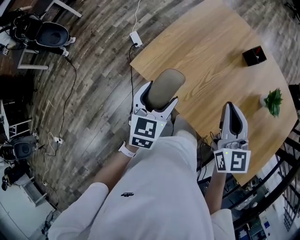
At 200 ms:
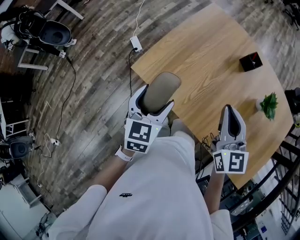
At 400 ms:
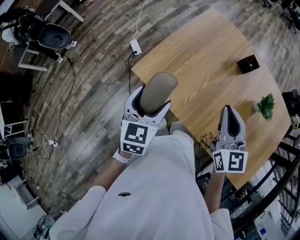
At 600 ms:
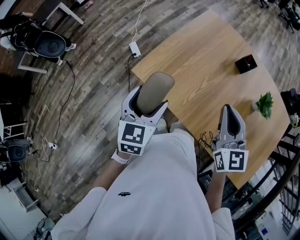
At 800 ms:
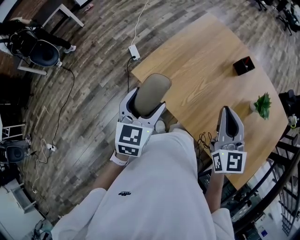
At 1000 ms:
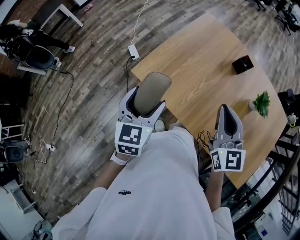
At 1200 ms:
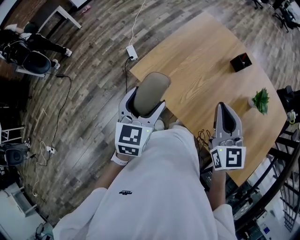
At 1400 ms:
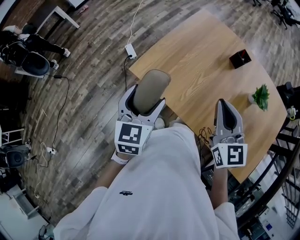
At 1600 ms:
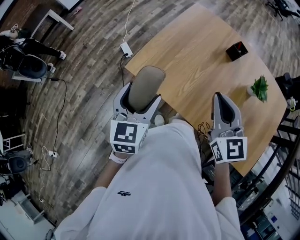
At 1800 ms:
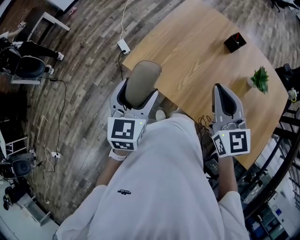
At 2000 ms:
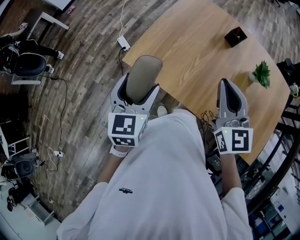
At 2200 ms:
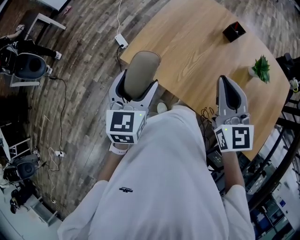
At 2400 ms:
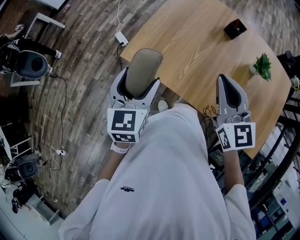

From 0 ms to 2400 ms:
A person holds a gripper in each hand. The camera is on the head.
From 0 ms to 1200 ms: The left gripper is displaced upward by roughly 10 cm. Meanwhile the right gripper goes about 5 cm upward.
From 1200 ms to 2400 ms: The grippers move only a little.

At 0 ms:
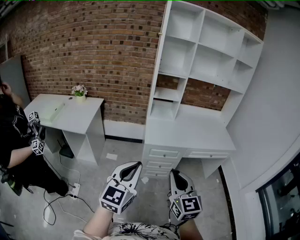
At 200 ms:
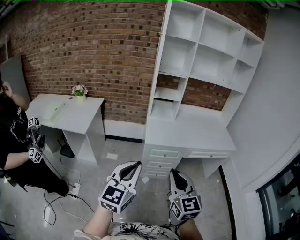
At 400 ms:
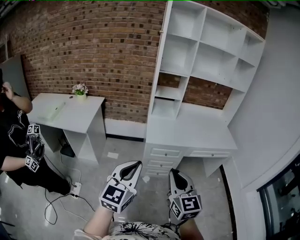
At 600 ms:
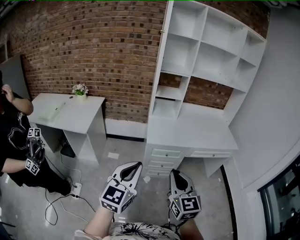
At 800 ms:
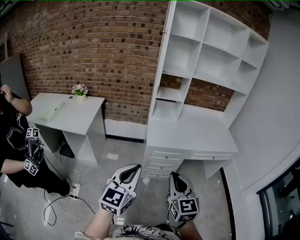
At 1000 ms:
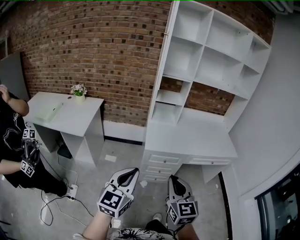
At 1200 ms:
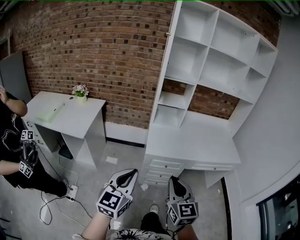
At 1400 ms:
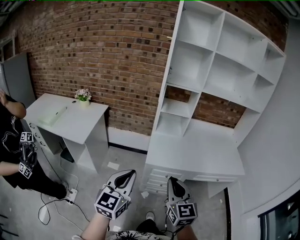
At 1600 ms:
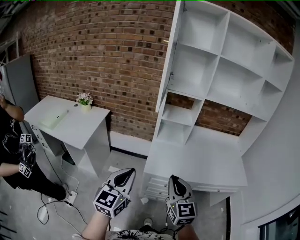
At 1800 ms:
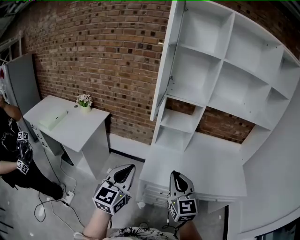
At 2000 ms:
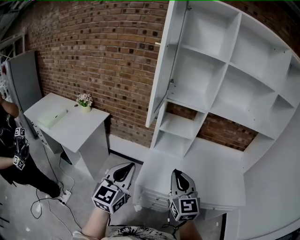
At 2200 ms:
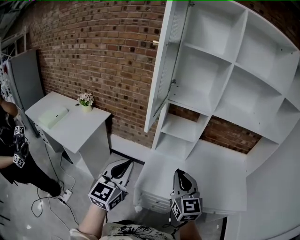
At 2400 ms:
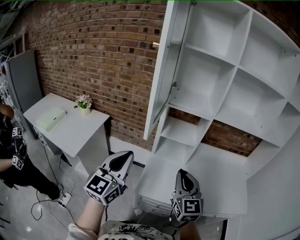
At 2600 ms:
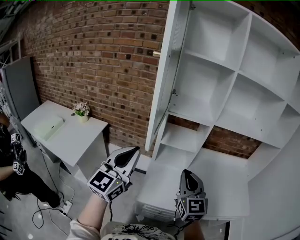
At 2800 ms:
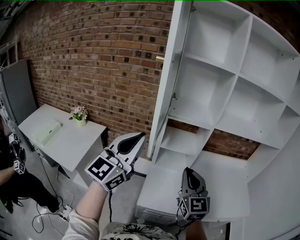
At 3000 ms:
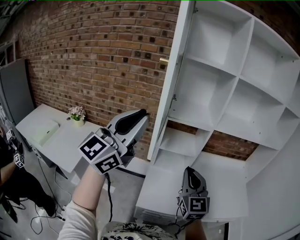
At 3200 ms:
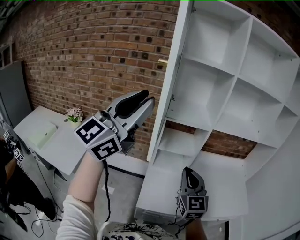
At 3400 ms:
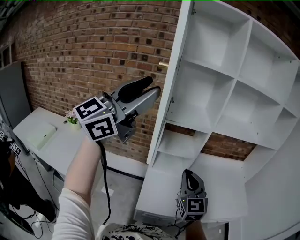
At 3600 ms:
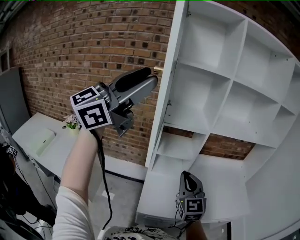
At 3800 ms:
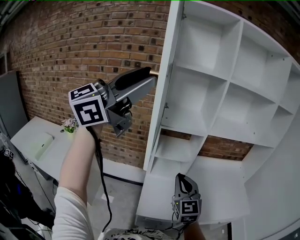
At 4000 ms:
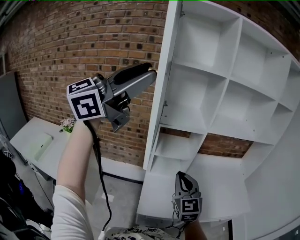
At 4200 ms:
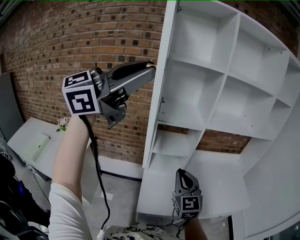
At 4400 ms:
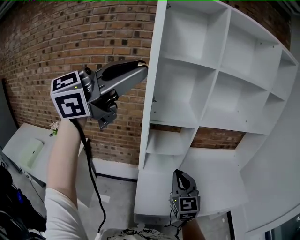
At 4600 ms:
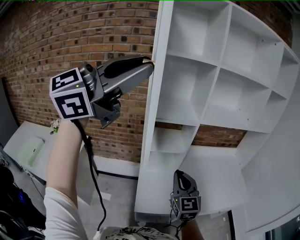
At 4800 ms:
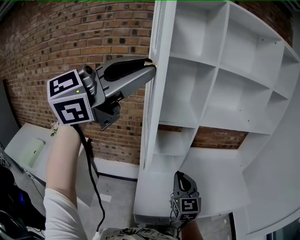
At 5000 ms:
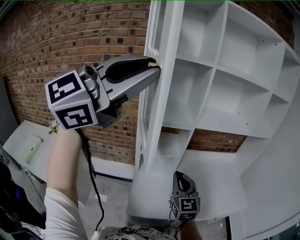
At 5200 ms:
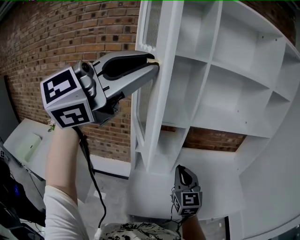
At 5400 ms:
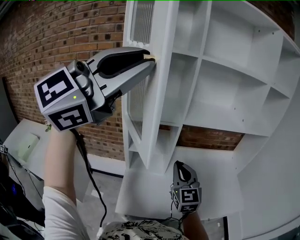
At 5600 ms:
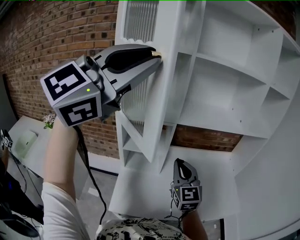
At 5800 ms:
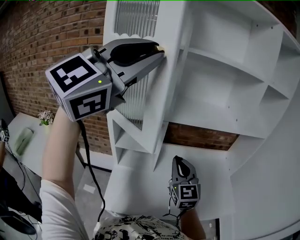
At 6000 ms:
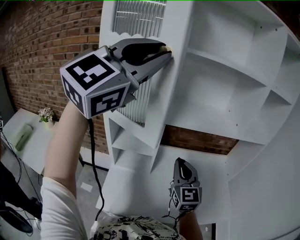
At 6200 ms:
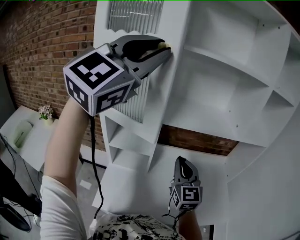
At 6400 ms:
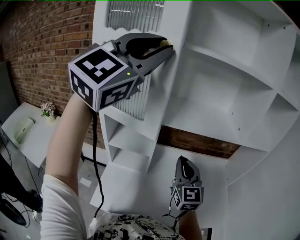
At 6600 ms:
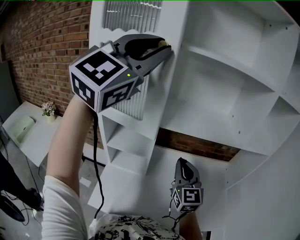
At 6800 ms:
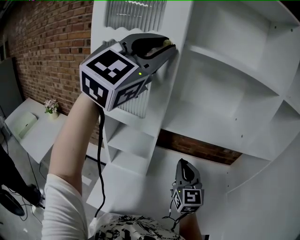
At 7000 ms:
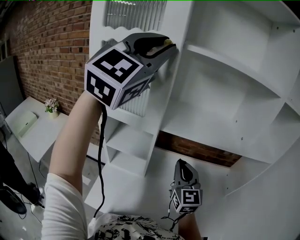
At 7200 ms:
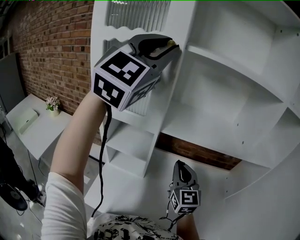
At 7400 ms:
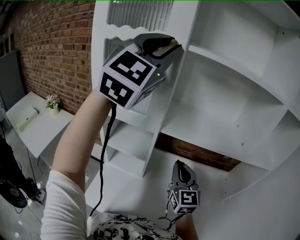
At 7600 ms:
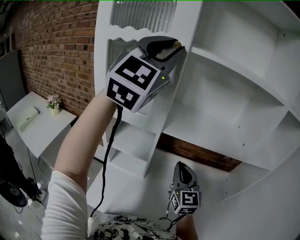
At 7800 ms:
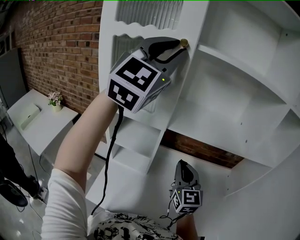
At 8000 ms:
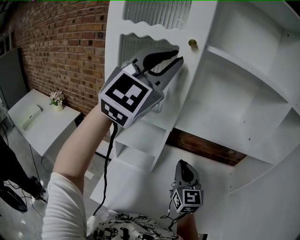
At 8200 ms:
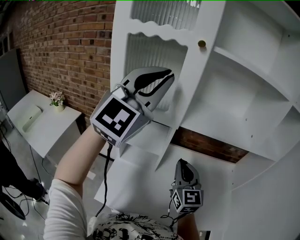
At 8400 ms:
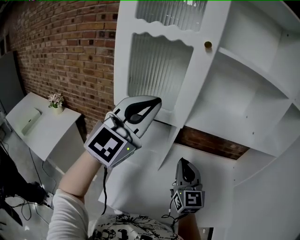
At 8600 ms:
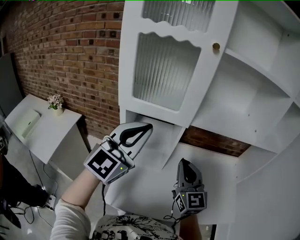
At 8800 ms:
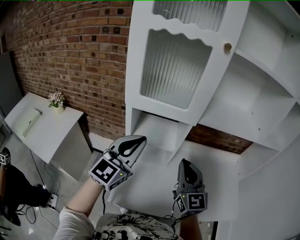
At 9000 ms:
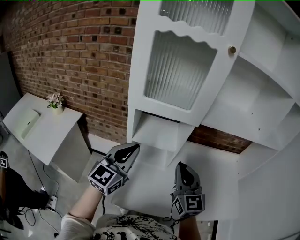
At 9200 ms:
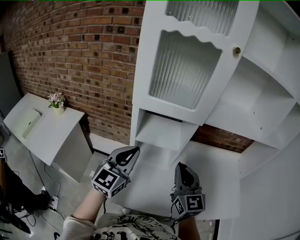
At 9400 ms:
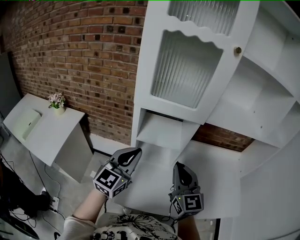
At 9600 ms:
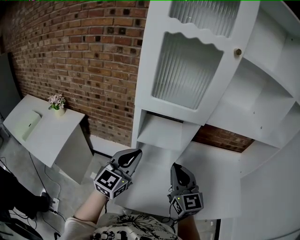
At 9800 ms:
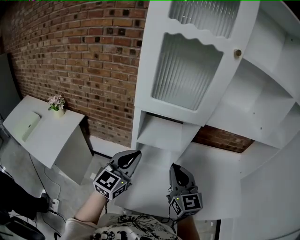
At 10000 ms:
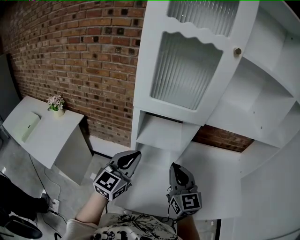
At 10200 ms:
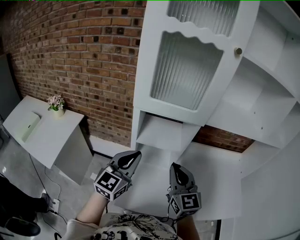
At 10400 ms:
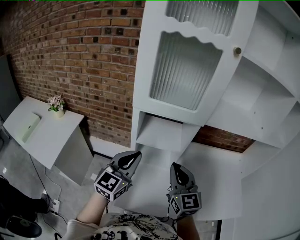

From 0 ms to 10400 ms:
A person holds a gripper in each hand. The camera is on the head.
From 0 ms to 1400 ms: The grippers both shift forward by about 15 cm.
From 1400 ms to 3000 ms: The right gripper moves forward, about 35 cm; the left gripper is displaced forward and upward by roughly 50 cm, and tilts its fingers approximately 30 degrees upward.
From 3000 ms to 4400 ms: The left gripper moves upward, some 15 cm, and rotates roughly 30 degrees.
From 4400 ms to 6000 ms: Both grippers travel together forward and to the right, approximately 30 cm. The left gripper turns by approximately 30 degrees.
From 6000 ms to 7400 ms: The left gripper travels forward by some 15 cm, and swivels about 20 degrees, while the right gripper shifts about 10 cm forward.
From 7400 ms to 9000 ms: The right gripper is displaced to the left and backward by about 20 cm; the left gripper goes some 40 cm downward and to the left, turns by approximately 40 degrees, and closes its fingers.
From 9000 ms to 10400 ms: There are only small adjustments of the grippers.

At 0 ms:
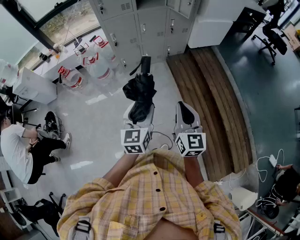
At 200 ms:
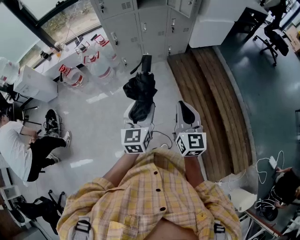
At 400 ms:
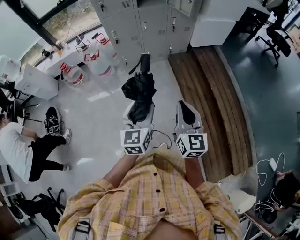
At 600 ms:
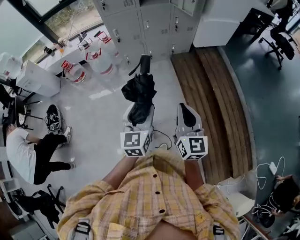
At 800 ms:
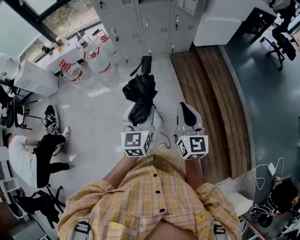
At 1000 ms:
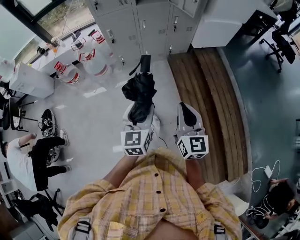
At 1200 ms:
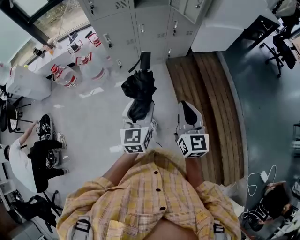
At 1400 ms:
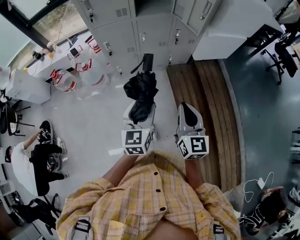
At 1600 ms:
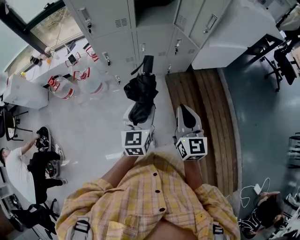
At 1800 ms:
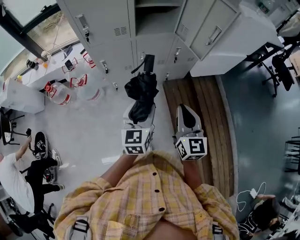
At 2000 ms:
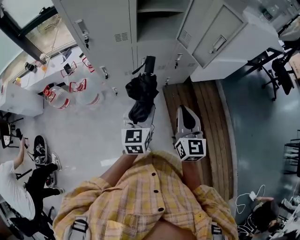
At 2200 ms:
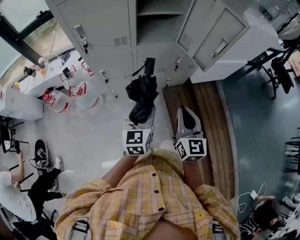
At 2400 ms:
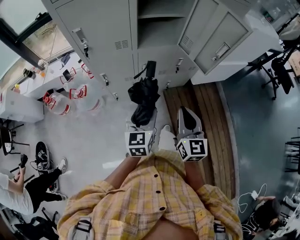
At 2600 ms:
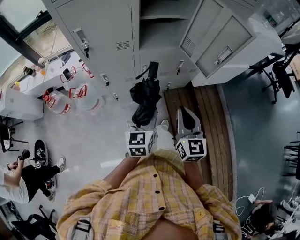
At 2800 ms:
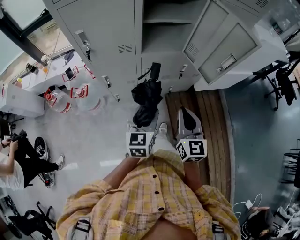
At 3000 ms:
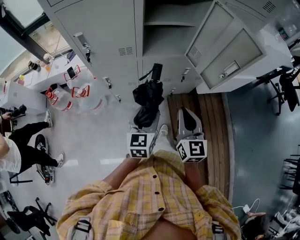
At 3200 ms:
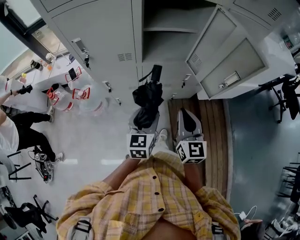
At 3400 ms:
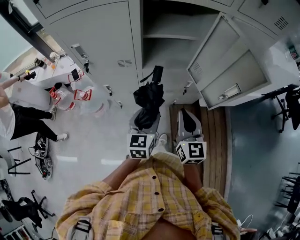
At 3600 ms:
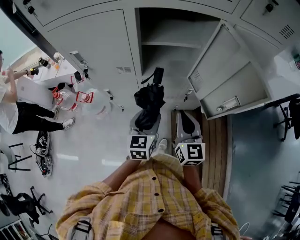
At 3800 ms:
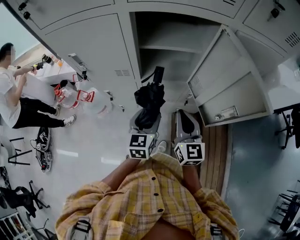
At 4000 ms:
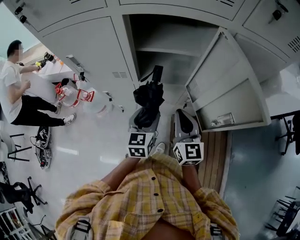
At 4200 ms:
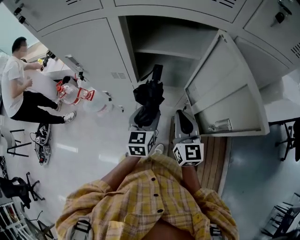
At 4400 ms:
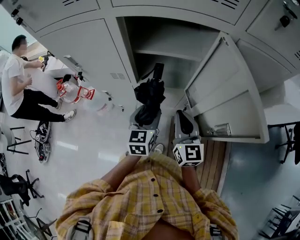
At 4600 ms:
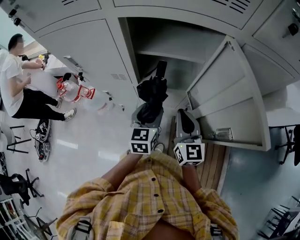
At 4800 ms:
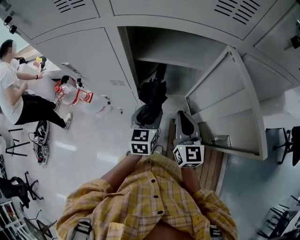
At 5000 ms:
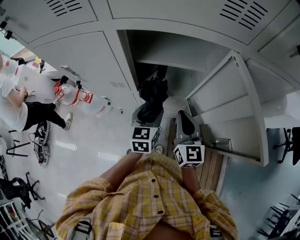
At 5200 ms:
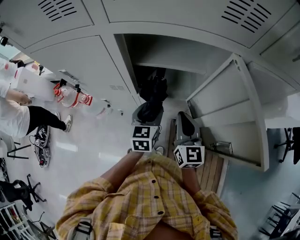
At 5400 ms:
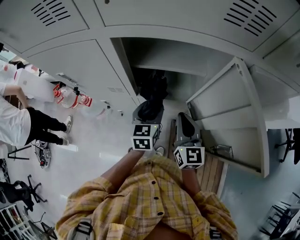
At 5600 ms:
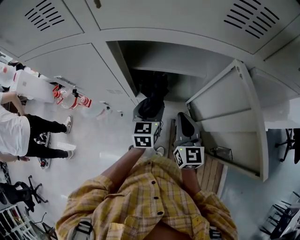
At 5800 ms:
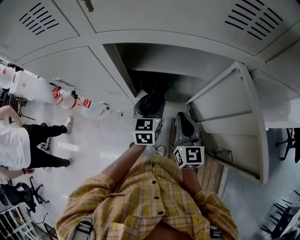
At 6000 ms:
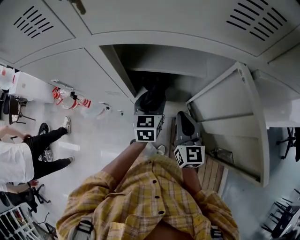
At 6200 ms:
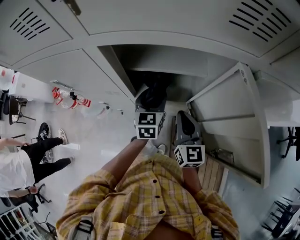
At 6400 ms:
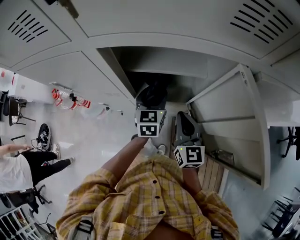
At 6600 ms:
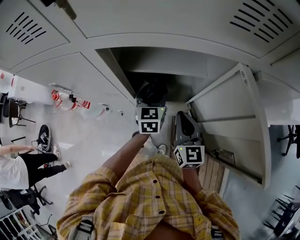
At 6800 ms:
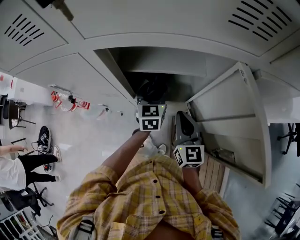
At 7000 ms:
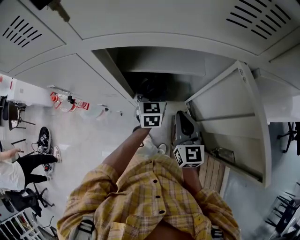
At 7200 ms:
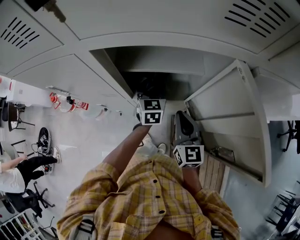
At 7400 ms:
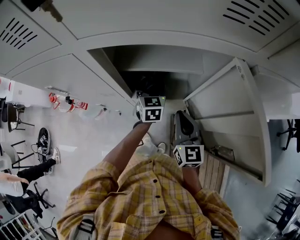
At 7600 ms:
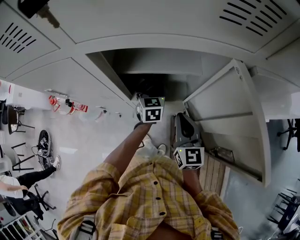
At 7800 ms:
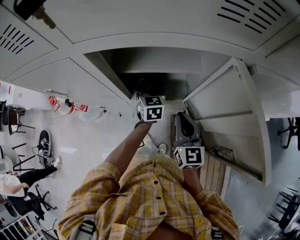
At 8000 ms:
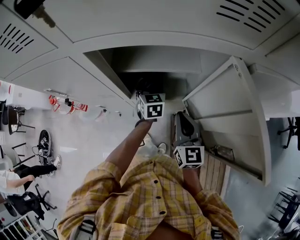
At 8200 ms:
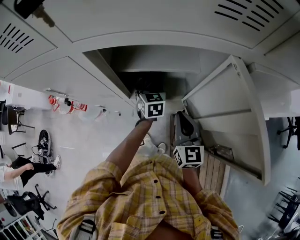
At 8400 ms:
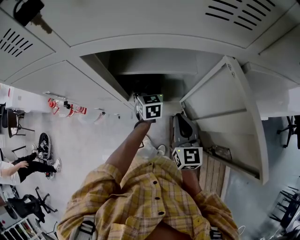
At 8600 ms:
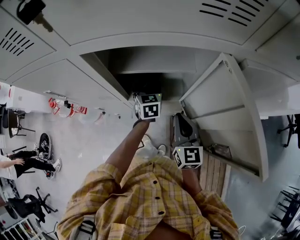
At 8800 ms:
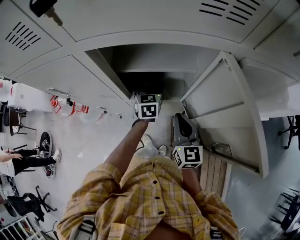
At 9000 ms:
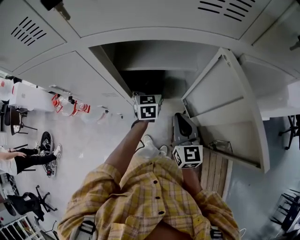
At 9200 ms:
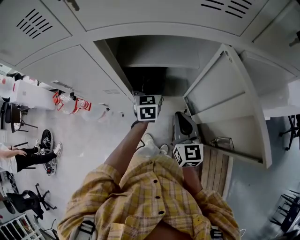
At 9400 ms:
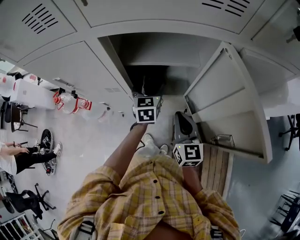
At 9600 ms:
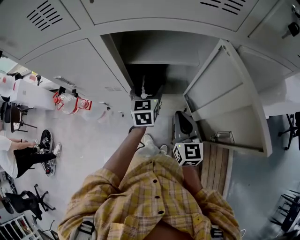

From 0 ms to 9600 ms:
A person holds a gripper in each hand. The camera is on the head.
From 0 ms to 1600 ms: Both grippers travel together forward, roughly 30 cm.
From 1600 ms to 3200 ms: The grippers both shift forward by some 25 cm.
From 3200 ms to 4800 ms: The right gripper moves forward, roughly 20 cm. Meanwhile the left gripper travels forward and to the right by some 20 cm.
From 4800 ms to 6400 ms: The right gripper travels forward by roughly 5 cm, while the left gripper travels forward by about 15 cm.
From 6400 ms to 8000 ms: The left gripper shifts some 10 cm downward and forward.
From 8000 ms to 9600 ms: The left gripper shifts approximately 10 cm upward and backward.

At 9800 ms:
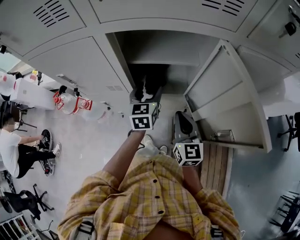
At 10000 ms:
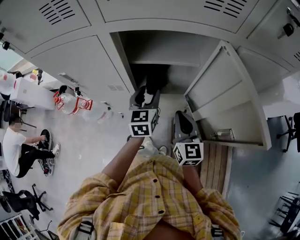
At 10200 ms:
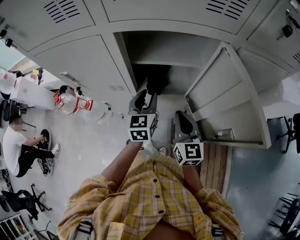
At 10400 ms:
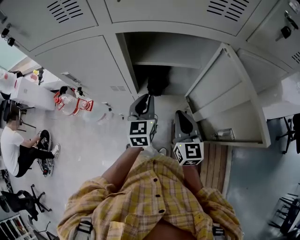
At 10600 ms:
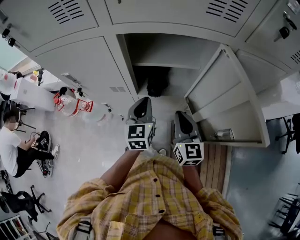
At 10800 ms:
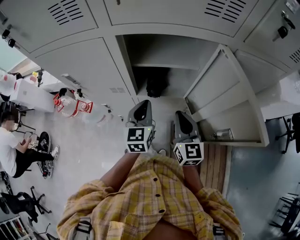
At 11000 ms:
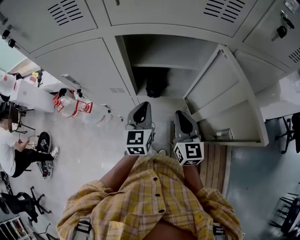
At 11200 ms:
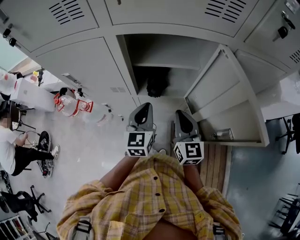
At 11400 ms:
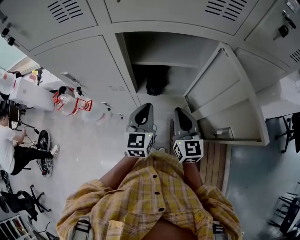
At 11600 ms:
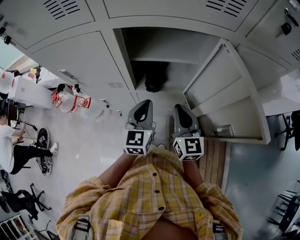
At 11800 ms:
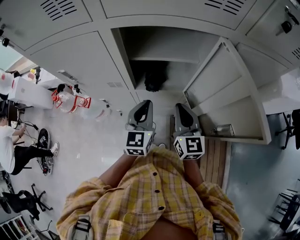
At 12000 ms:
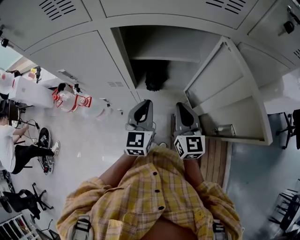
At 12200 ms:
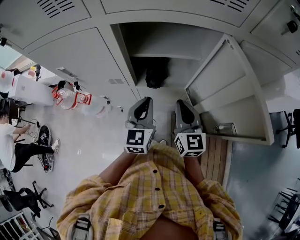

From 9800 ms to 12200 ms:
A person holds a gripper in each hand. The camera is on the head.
From 9800 ms to 11000 ms: The left gripper travels backward by roughly 10 cm, and closes up.
From 11000 ms to 12200 ms: There are only small adjustments of the grippers.
